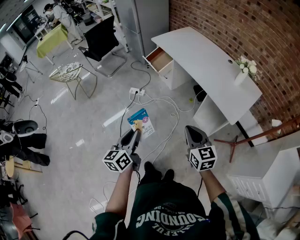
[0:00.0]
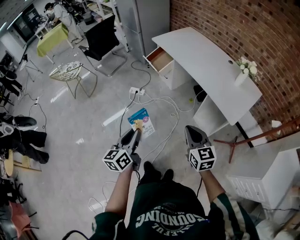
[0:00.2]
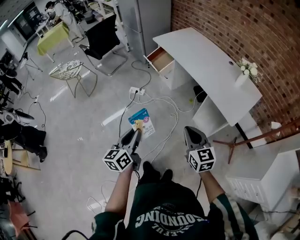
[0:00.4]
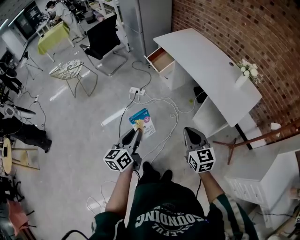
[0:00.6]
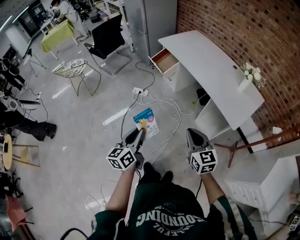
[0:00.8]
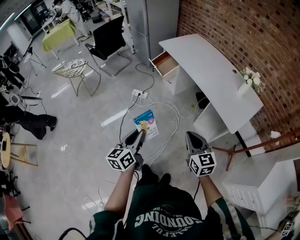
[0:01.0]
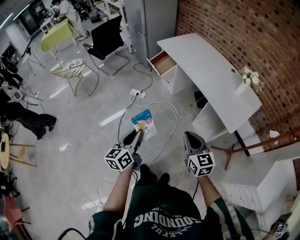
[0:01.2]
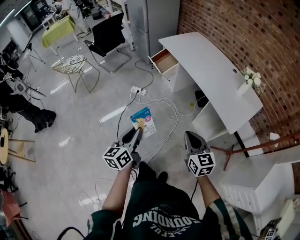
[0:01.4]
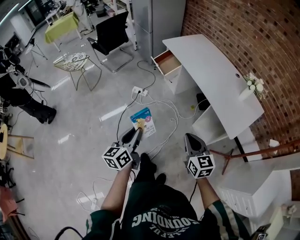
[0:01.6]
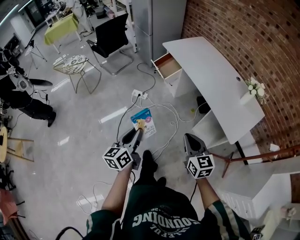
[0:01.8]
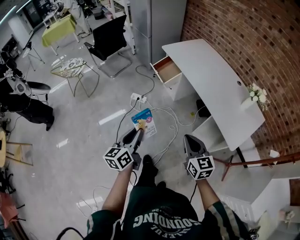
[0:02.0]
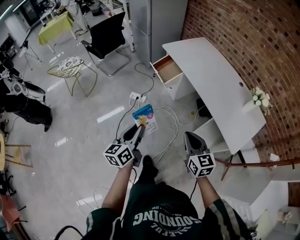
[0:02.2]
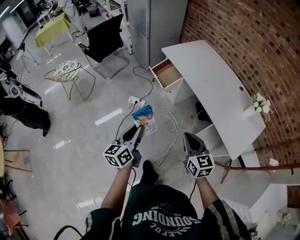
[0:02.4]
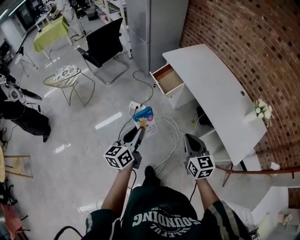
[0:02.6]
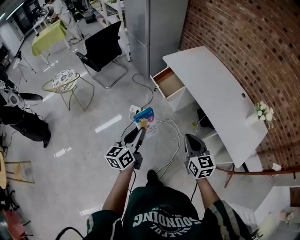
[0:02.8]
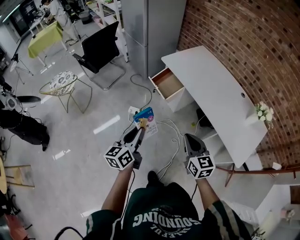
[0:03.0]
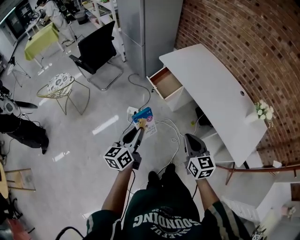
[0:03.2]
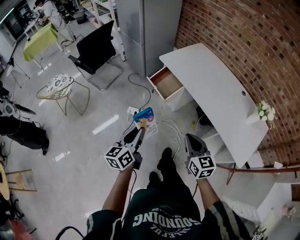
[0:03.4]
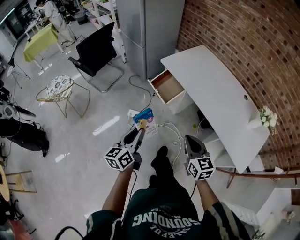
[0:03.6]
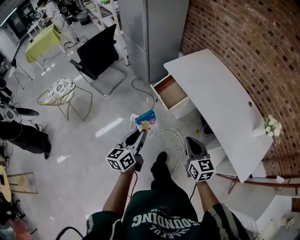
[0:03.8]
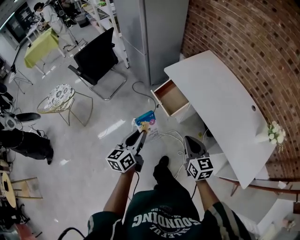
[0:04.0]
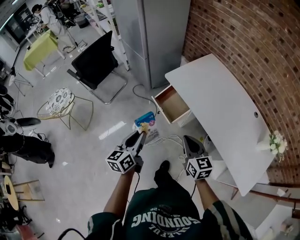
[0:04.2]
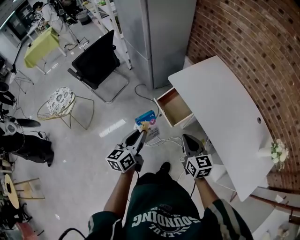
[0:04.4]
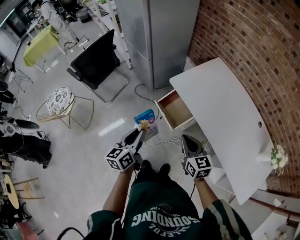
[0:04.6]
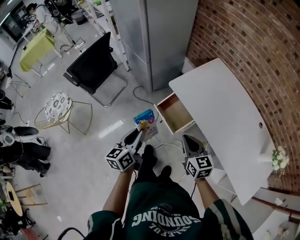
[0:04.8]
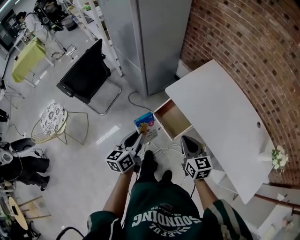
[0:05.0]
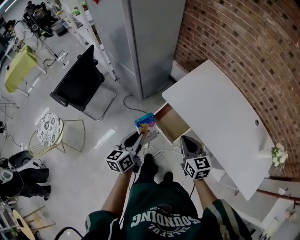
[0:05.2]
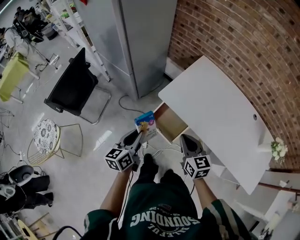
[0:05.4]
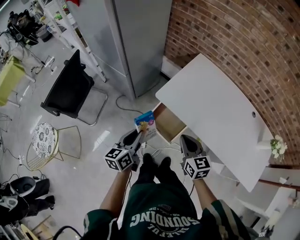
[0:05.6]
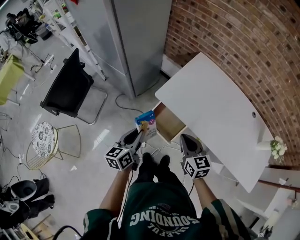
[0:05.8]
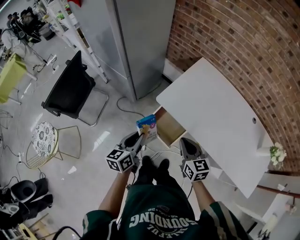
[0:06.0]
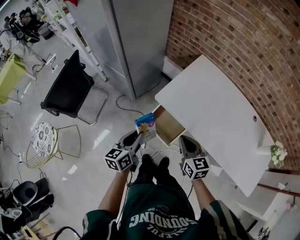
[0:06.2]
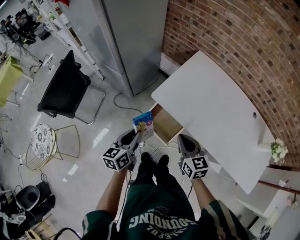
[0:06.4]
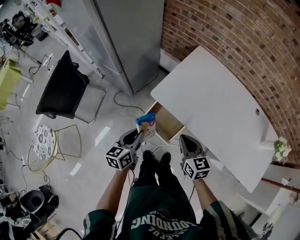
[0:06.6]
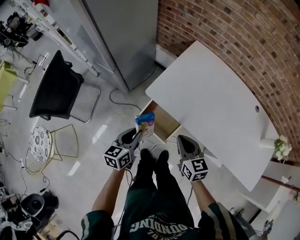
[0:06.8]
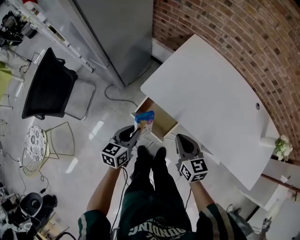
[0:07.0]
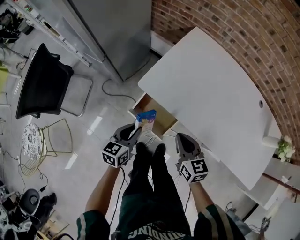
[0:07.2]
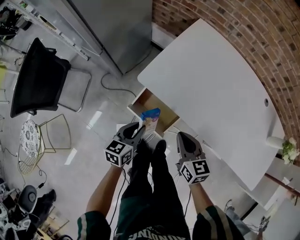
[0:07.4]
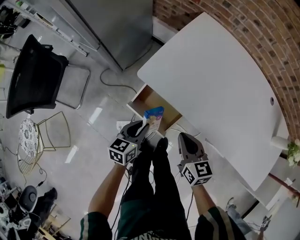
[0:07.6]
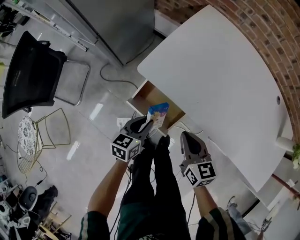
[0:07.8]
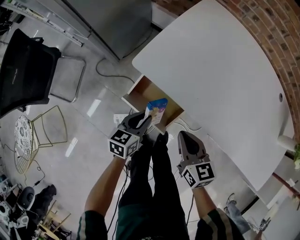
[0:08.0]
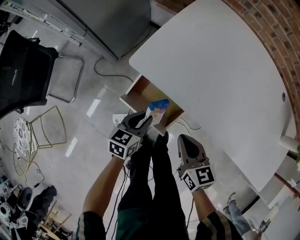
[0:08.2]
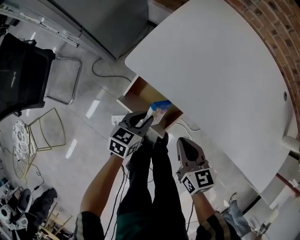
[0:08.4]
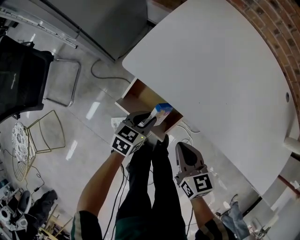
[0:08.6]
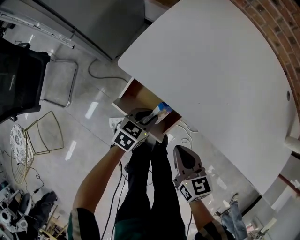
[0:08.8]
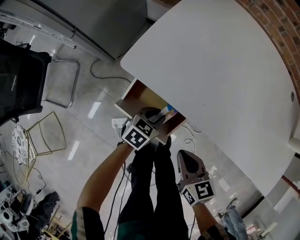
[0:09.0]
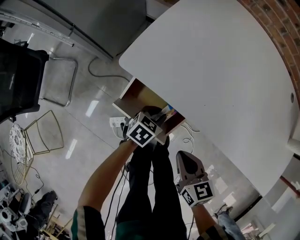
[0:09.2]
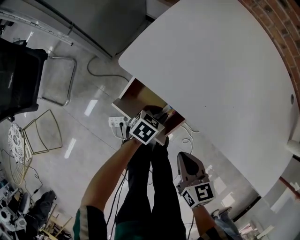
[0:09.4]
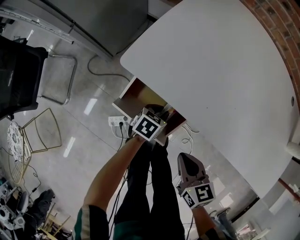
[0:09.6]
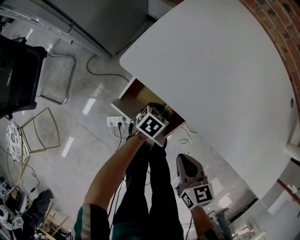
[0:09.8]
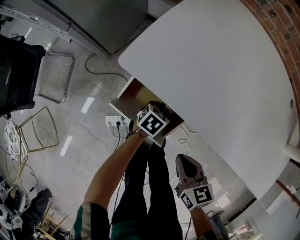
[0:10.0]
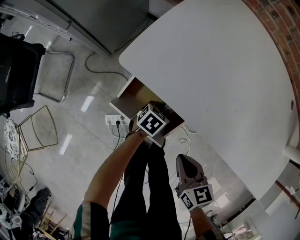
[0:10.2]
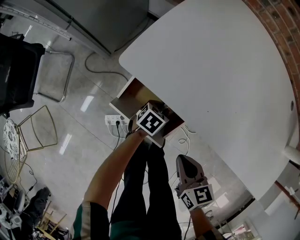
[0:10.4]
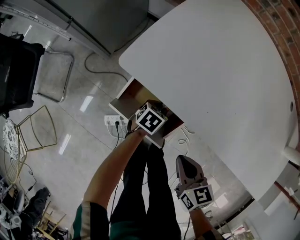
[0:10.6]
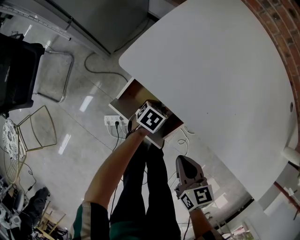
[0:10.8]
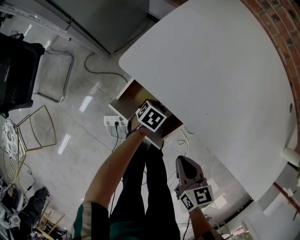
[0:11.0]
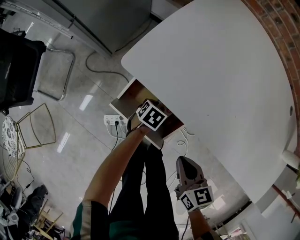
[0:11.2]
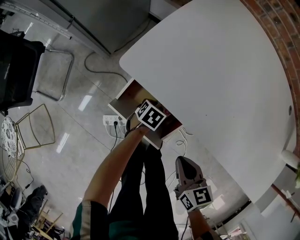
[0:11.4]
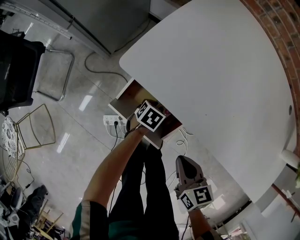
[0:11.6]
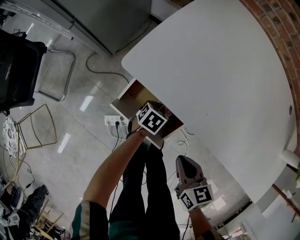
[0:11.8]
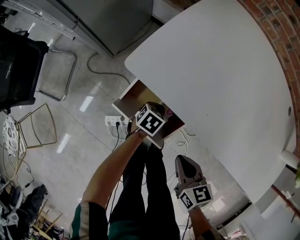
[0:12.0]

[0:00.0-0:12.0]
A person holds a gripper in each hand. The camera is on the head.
0:00.0 to 0:01.6: The grippers stay close to where they were, moving slightly.
0:01.6 to 0:03.0: The grippers both shift forward by some 25 cm.
0:03.0 to 0:04.4: The two grippers go some 30 cm forward.
0:04.4 to 0:06.0: Both grippers travel together forward, about 20 cm.
0:06.0 to 0:07.6: The left gripper heads downward and to the right, covering roughly 20 cm, and turns by some 20 degrees. Meanwhile the right gripper heads downward, covering about 15 cm.
0:07.6 to 0:09.0: The right gripper shifts roughly 10 cm downward. The left gripper is displaced downward and to the right by about 20 cm, and turns by some 30 degrees.
0:09.0 to 0:10.4: The left gripper shifts some 10 cm downward.
0:10.4 to 0:12.0: The grippers stay close to where they were, moving slightly.

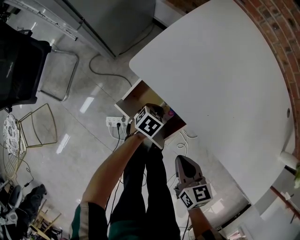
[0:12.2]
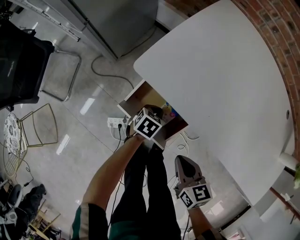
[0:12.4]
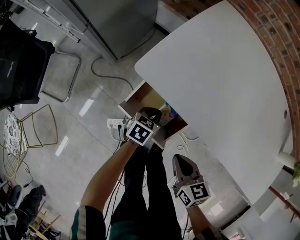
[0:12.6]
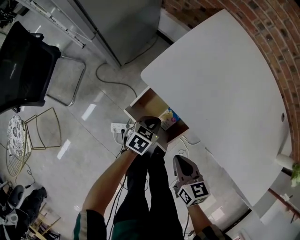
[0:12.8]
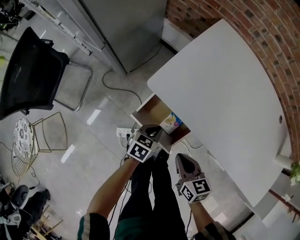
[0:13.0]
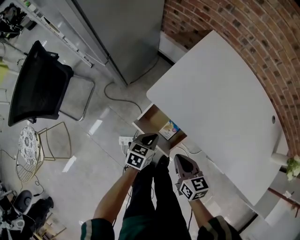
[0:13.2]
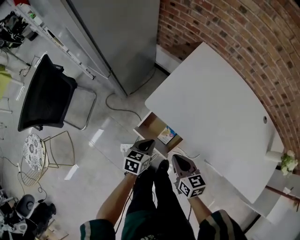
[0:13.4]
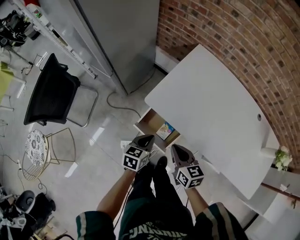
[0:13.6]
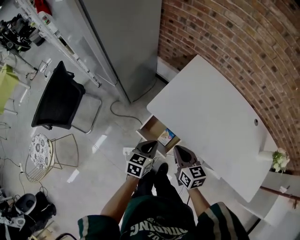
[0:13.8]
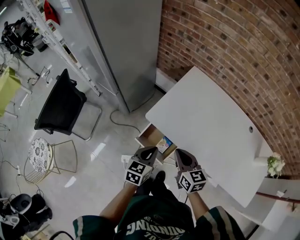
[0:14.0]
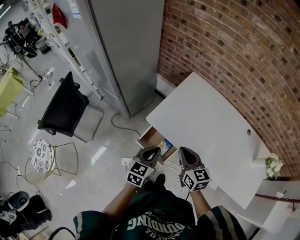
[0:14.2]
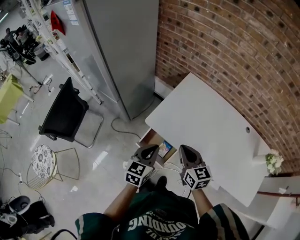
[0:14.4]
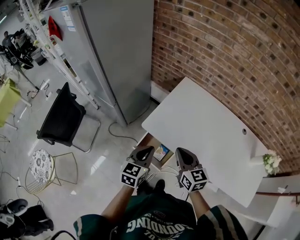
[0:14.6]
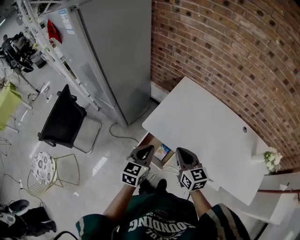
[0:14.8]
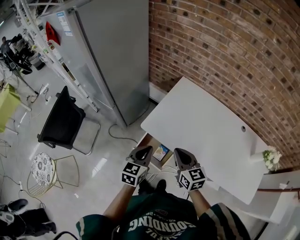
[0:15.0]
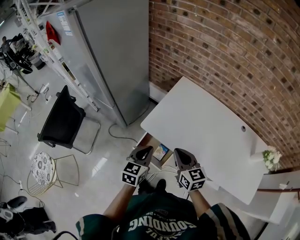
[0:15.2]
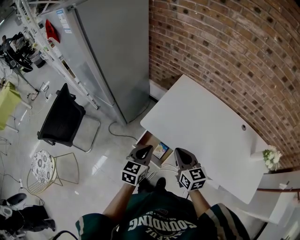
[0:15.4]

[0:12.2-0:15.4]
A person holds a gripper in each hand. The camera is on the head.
0:12.2 to 0:13.8: The right gripper moves upward, roughly 20 cm, while the left gripper shifts some 35 cm upward, and changes its angle by some 30 degrees.
0:13.8 to 0:15.4: Both grippers move upward, about 10 cm.

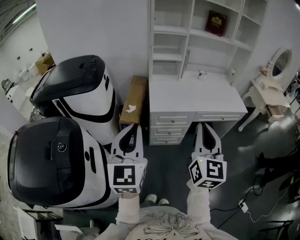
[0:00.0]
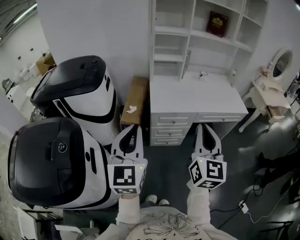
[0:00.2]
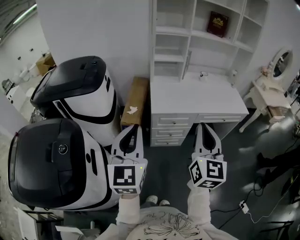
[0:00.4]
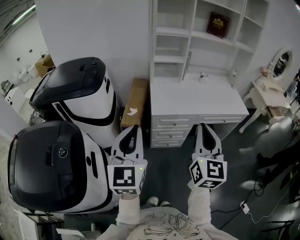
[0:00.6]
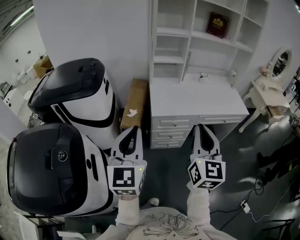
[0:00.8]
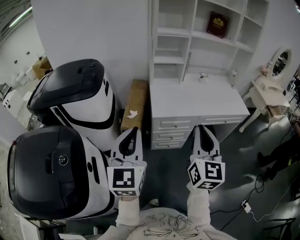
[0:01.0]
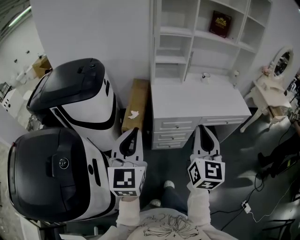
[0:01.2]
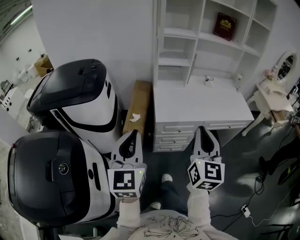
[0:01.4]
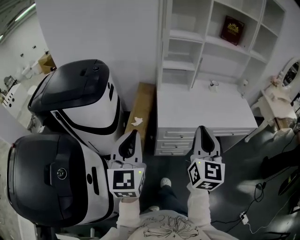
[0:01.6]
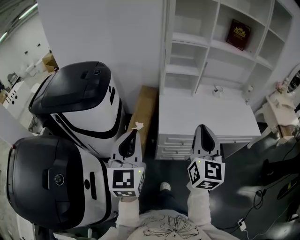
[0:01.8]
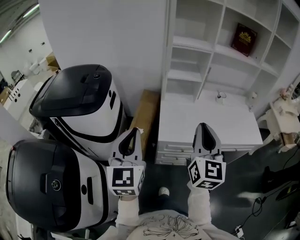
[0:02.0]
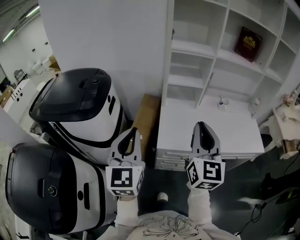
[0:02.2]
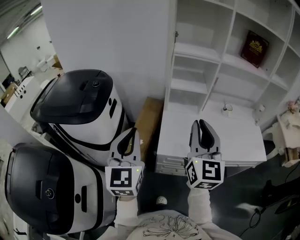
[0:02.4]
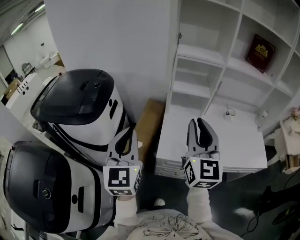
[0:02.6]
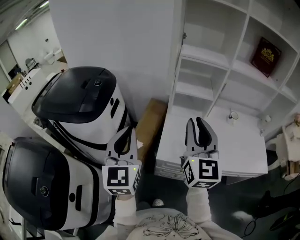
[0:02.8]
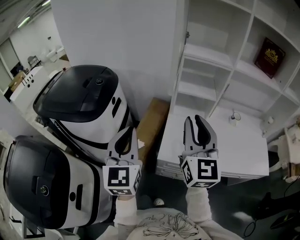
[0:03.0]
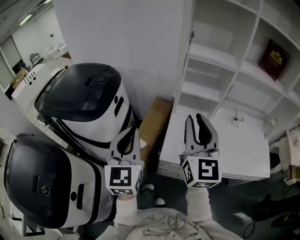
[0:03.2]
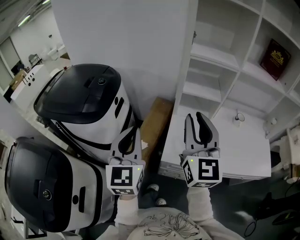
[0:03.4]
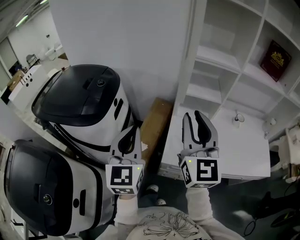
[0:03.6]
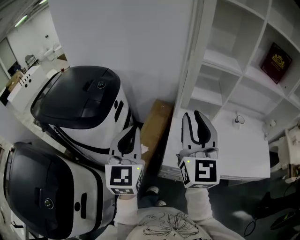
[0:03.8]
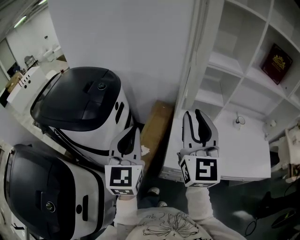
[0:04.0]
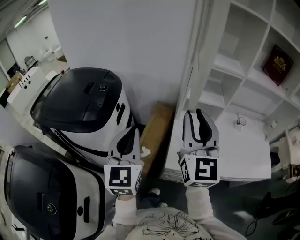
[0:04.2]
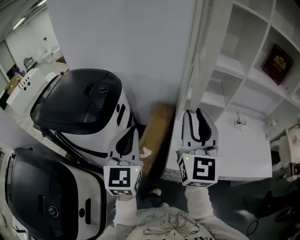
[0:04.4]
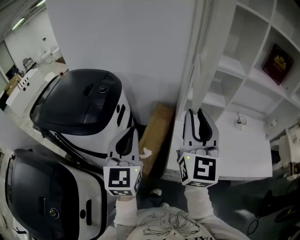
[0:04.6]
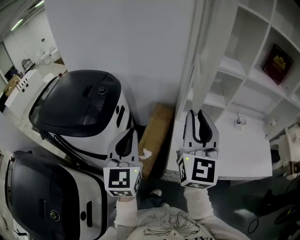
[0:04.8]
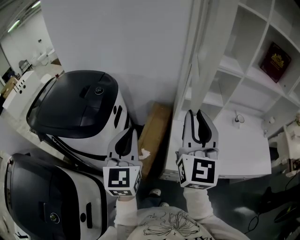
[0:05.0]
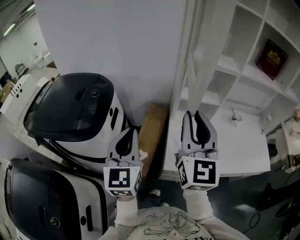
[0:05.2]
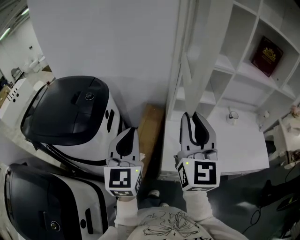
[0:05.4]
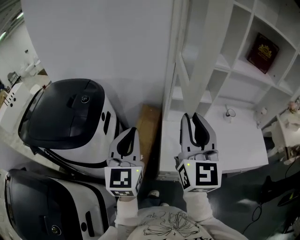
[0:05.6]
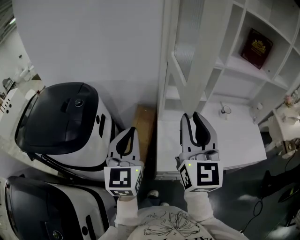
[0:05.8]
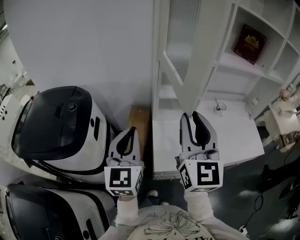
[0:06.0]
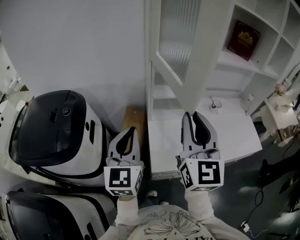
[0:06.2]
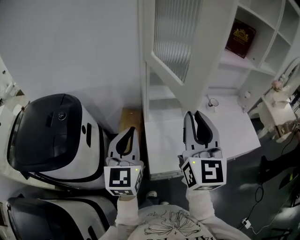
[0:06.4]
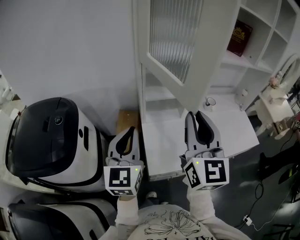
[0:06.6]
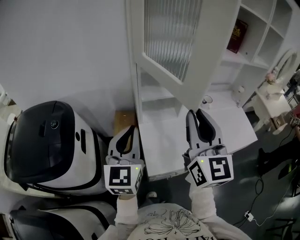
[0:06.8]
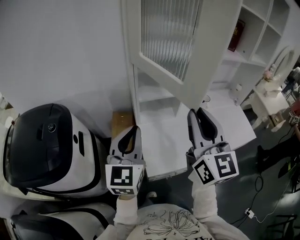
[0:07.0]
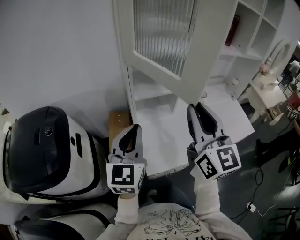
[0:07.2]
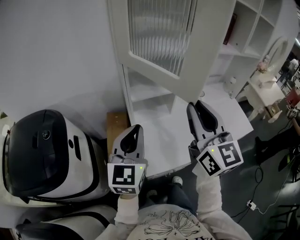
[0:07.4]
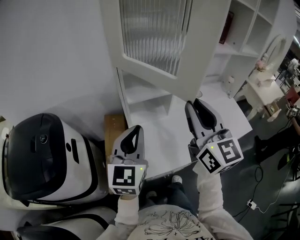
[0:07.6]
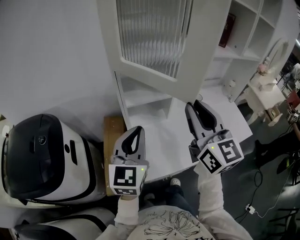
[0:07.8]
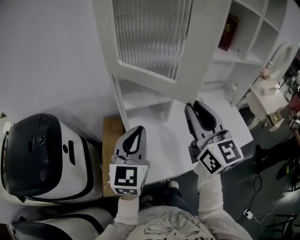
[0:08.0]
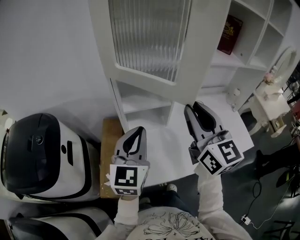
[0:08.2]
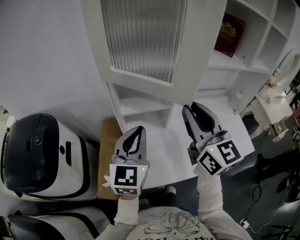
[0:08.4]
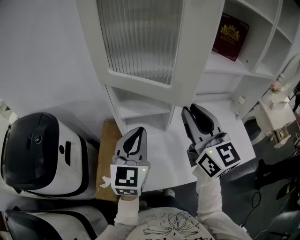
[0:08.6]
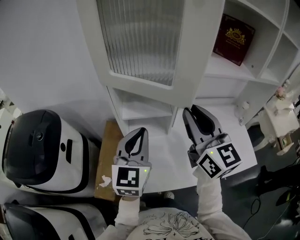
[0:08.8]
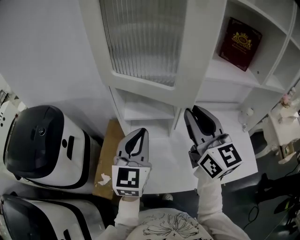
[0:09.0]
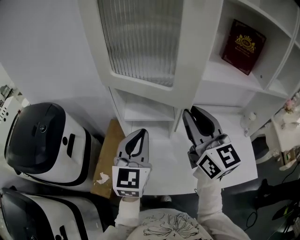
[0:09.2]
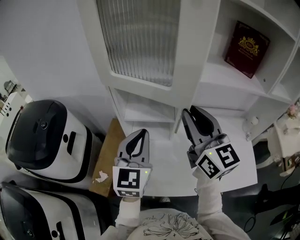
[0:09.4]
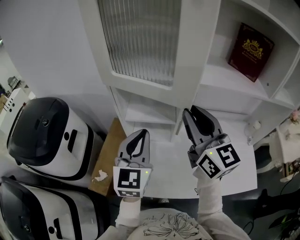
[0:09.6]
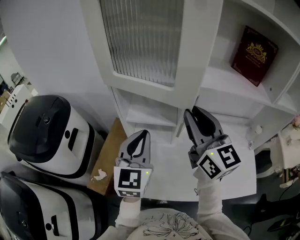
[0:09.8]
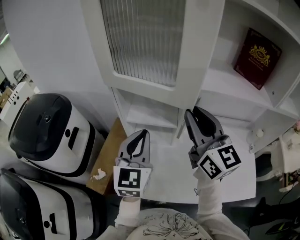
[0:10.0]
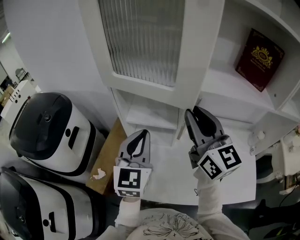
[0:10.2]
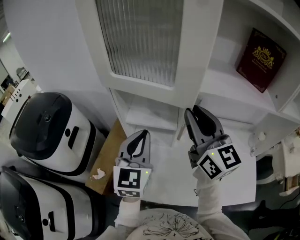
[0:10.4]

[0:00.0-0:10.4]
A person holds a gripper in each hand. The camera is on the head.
0:00.0 to 0:01.4: Both grippers move forward and to the left, some 10 cm.
0:01.4 to 0:03.0: Both grippers travel together forward, some 30 cm. The right gripper changes its angle by about 20 degrees.
0:03.0 to 0:04.4: The right gripper goes some 10 cm to the left and forward, while the left gripper goes about 10 cm forward and to the left.
0:04.4 to 0:06.0: The right gripper travels to the right by approximately 5 cm. Meanwhile the left gripper heads to the right and forward, covering about 10 cm.
0:06.0 to 0:07.4: The two grippers go roughly 10 cm to the right and forward.
0:07.4 to 0:09.0: The left gripper is displaced to the right and forward by roughly 15 cm. The right gripper shifts about 15 cm forward and to the right.
0:09.0 to 0:10.4: The right gripper goes approximately 5 cm forward. Meanwhile the left gripper changes place by roughly 5 cm.
